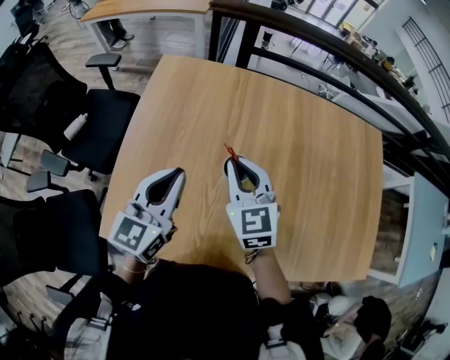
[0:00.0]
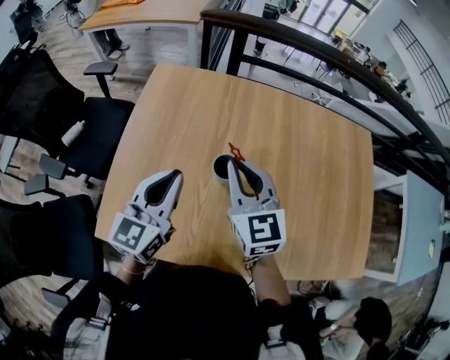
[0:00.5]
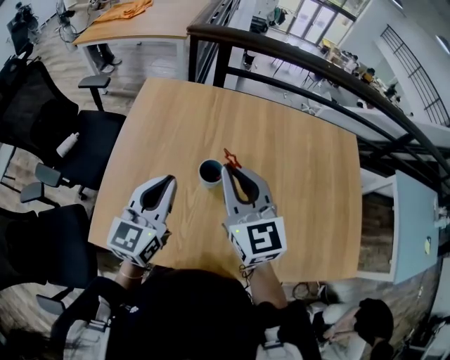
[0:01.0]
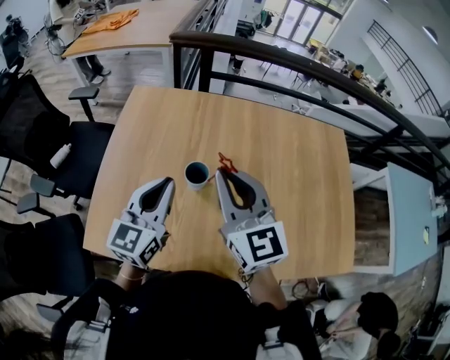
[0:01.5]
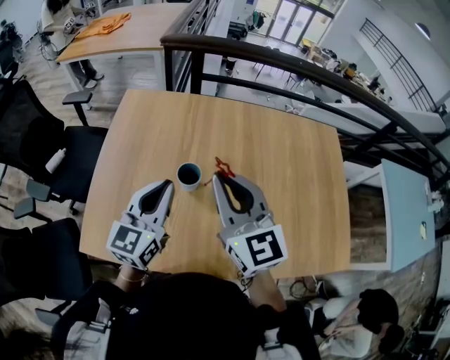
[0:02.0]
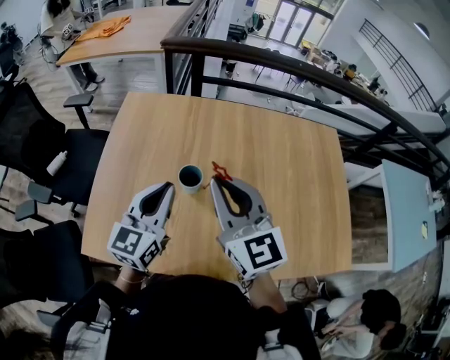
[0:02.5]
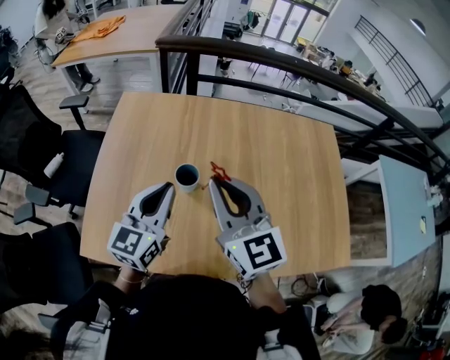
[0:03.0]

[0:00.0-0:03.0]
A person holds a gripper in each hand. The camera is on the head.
0:00.0 to 0:01.5: The left gripper shifts approximately 10 cm to the right. The right gripper goes approximately 20 cm upward, backward and to the right, and swivels roughly 20 degrees.
0:01.5 to 0:03.0: There are only small adjustments of the grippers.

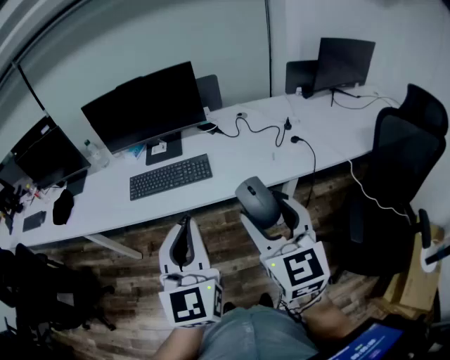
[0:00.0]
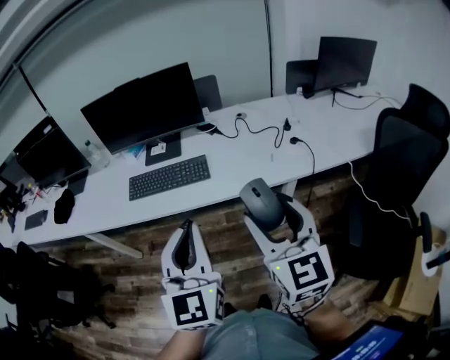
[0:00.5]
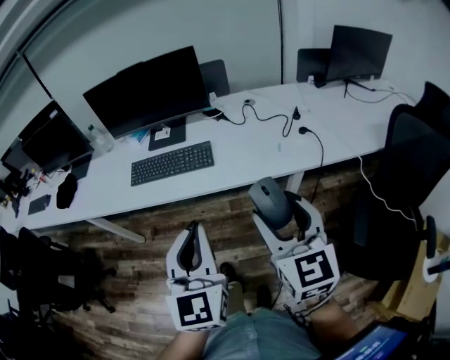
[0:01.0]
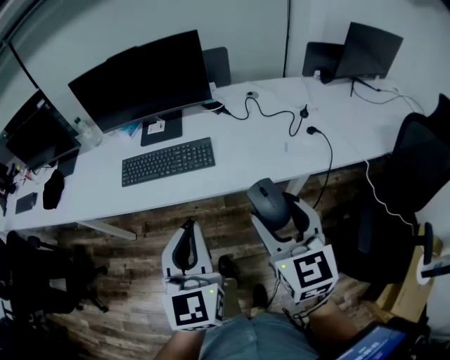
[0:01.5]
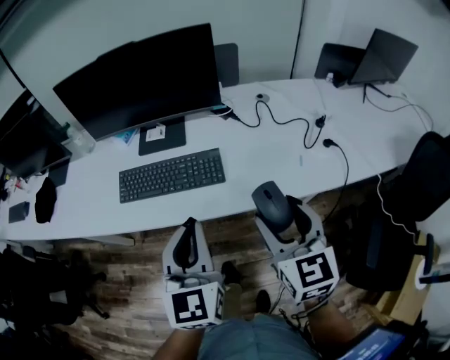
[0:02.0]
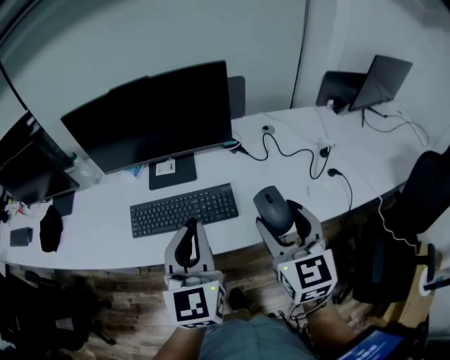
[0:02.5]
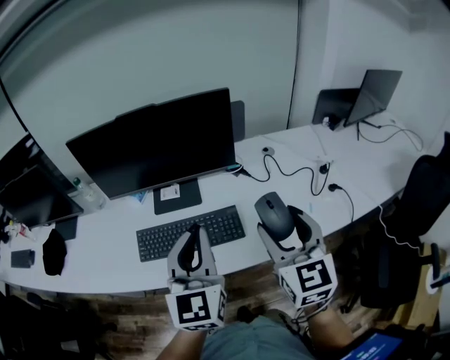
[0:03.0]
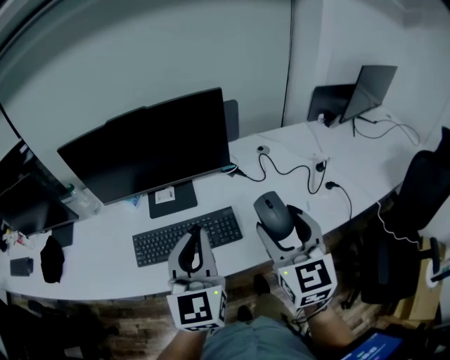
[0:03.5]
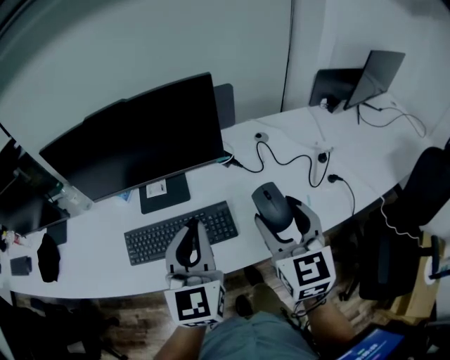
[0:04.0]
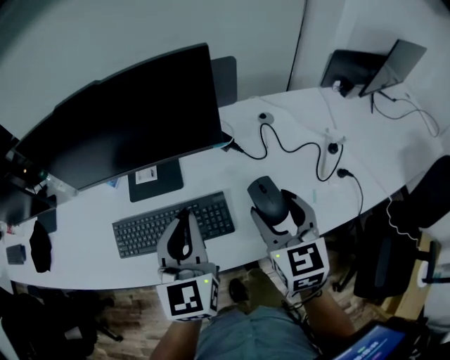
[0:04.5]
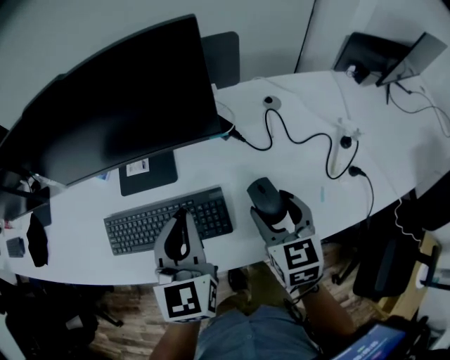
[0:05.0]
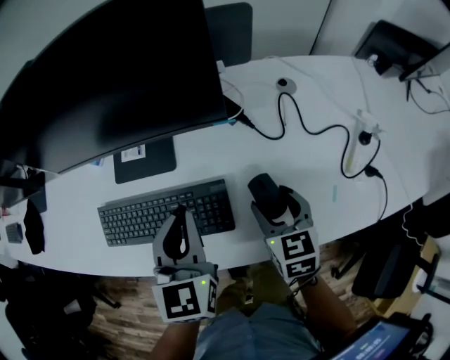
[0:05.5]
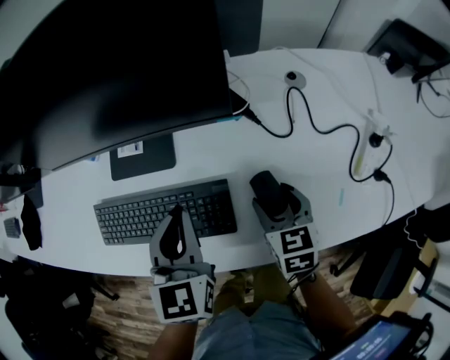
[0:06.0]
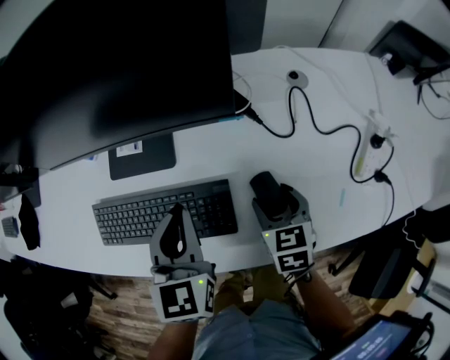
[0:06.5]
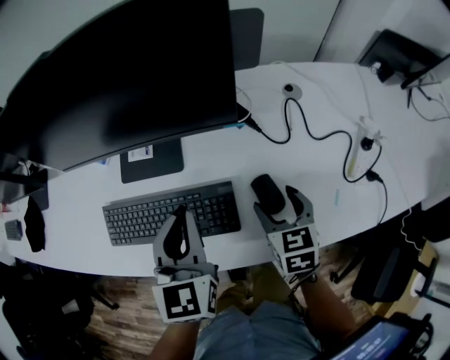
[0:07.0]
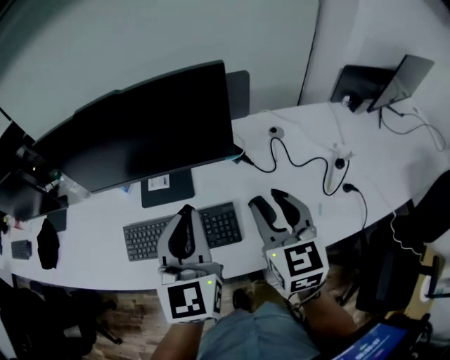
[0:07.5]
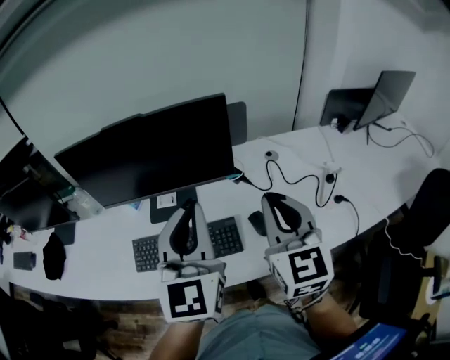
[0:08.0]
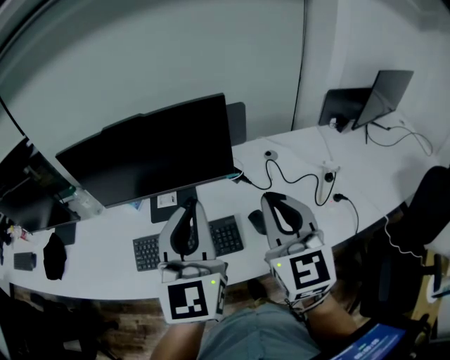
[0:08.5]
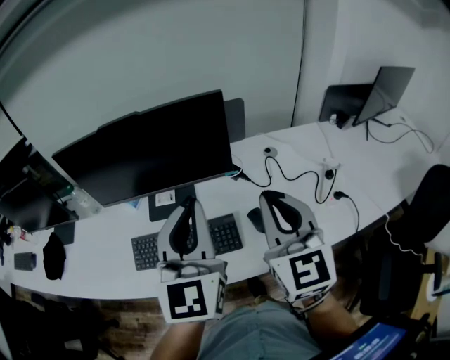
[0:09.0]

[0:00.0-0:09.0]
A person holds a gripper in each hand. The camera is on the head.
0:00.0 to 0:02.0: The grippers both shift forward and downward by some 20 cm.
0:02.0 to 0:04.5: Both grippers travel together forward, approximately 20 cm.
0:04.5 to 0:07.0: The right gripper travels downward by about 15 cm, and rotates approximately 20 degrees. The left gripper shifts about 5 cm downward.
0:07.0 to 0:09.0: Both grippers travel together upward, roughly 25 cm. The left gripper changes its angle by roughly 30 degrees. The right gripper points its fingers about 40 degrees further upward, and closes up.

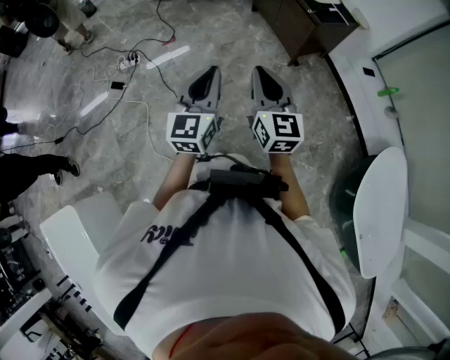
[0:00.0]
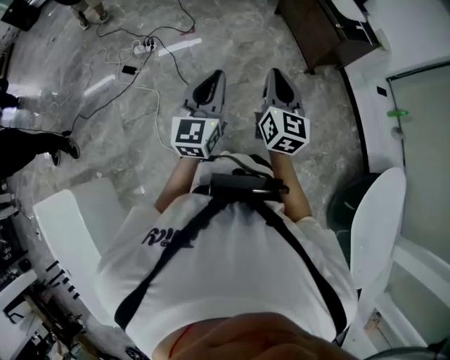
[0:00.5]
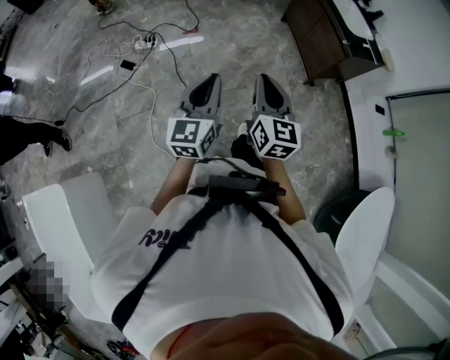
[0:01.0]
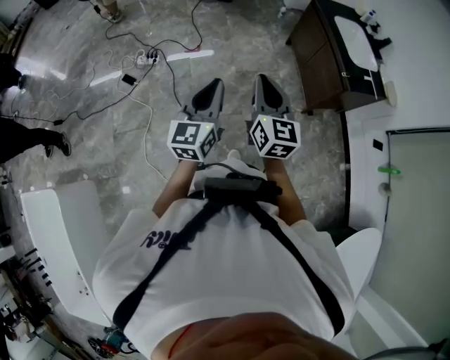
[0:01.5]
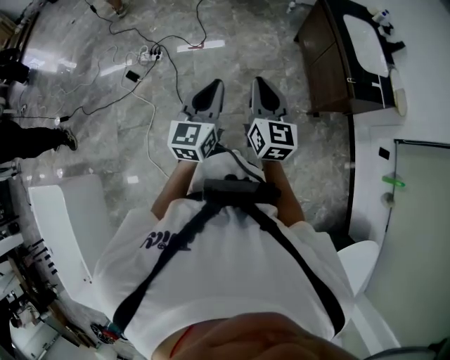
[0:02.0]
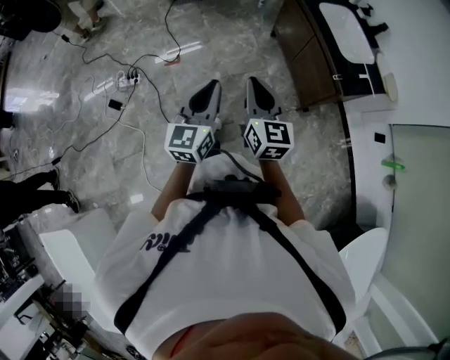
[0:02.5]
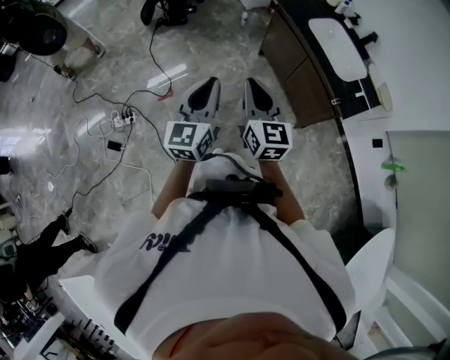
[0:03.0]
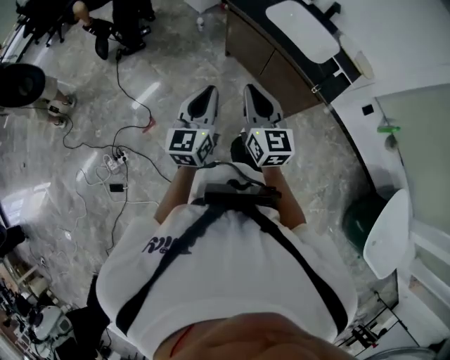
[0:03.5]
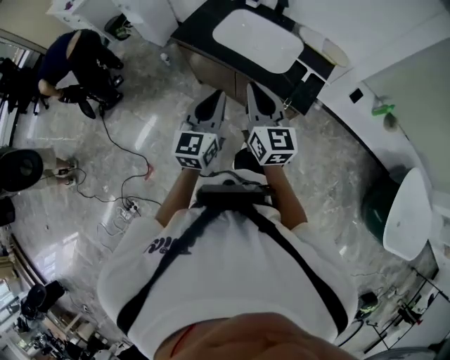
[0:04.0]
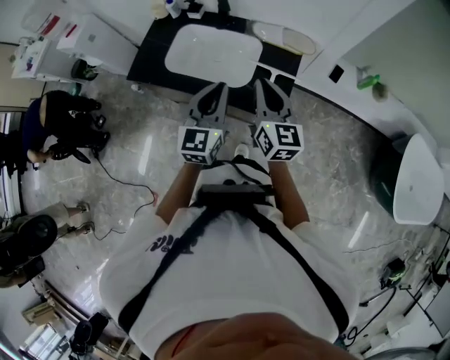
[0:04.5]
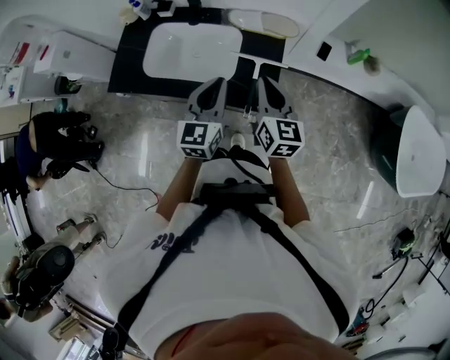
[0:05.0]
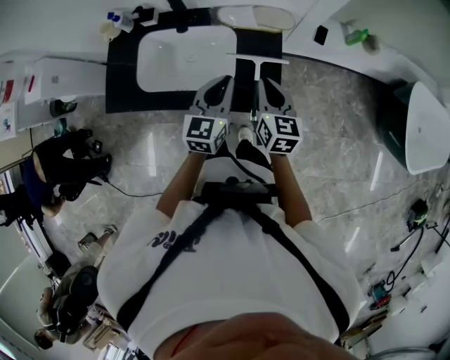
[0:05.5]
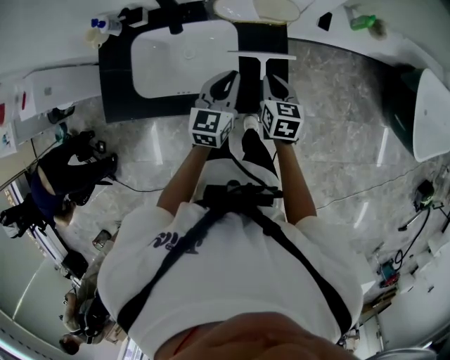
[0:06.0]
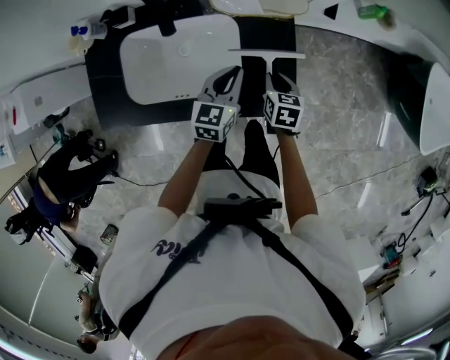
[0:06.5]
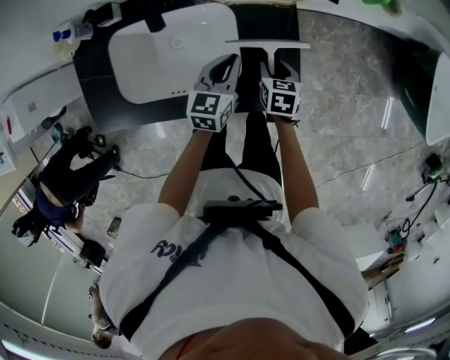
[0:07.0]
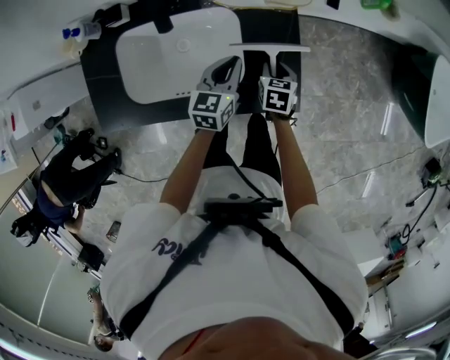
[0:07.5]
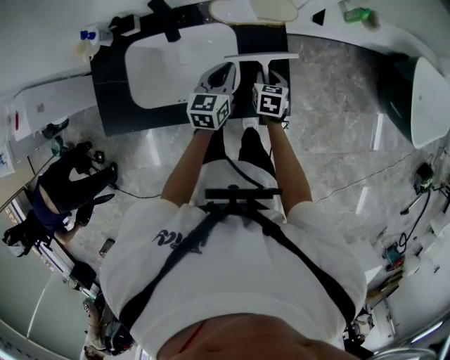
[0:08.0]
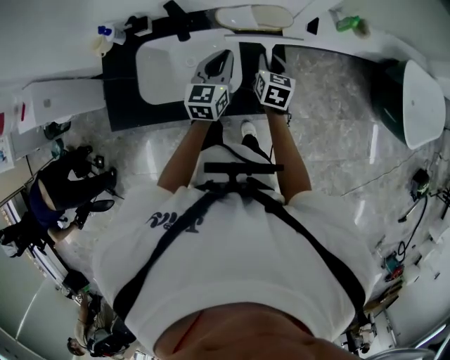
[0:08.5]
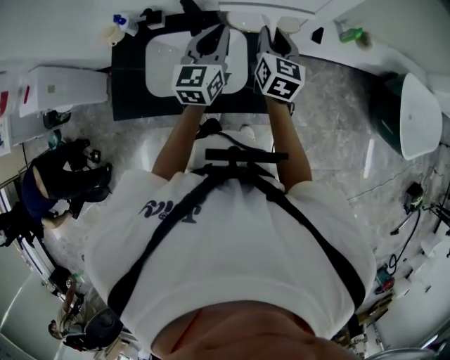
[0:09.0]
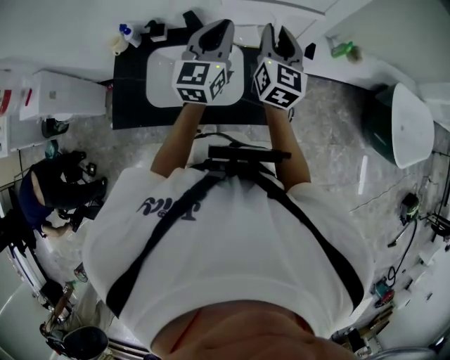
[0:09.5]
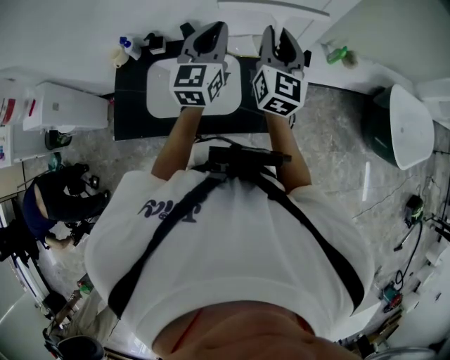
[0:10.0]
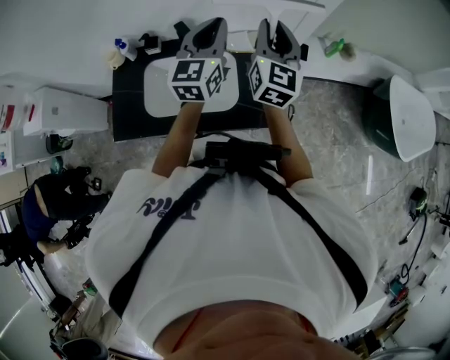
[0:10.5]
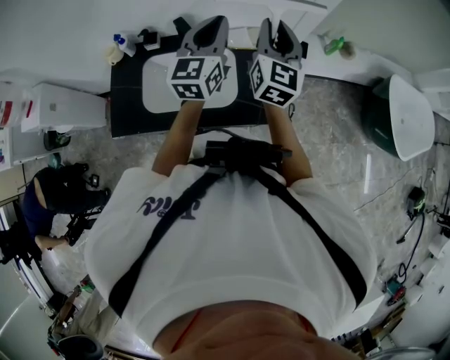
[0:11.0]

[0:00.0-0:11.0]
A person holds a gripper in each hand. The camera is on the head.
0:00.0 to 0:02.0: The two grippers go about 30 cm forward.
0:02.0 to 0:03.5: The right gripper changes place by roughly 35 cm, and changes its angle by some 30 degrees. Meanwhile the left gripper ends up some 40 cm from where it was, and swivels about 30 degrees.
0:03.5 to 0:05.5: The pair of grippers is taken about 60 cm. The right gripper turns by about 50 degrees; the left gripper changes its angle by some 50 degrees.
0:05.5 to 0:07.5: The left gripper shifts roughly 20 cm downward and forward. Meanwhile the right gripper is displaced downward by roughly 25 cm, tilts its fingers some 40 degrees downward, and opens its fingers.
0:07.5 to 0:09.0: The grippers both shift upward by about 30 cm. The left gripper changes its angle by about 30 degrees; the right gripper points its fingers approximately 40 degrees further upward.
0:09.0 to 0:11.0: The grippers both shift upward by roughly 10 cm. The right gripper changes its angle by approximately 20 degrees.

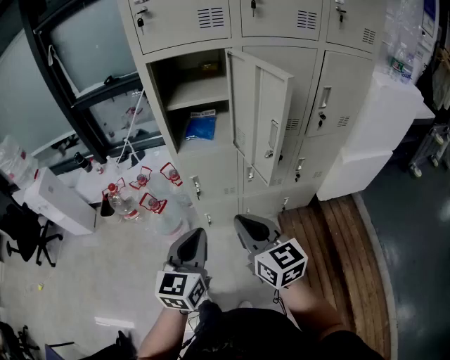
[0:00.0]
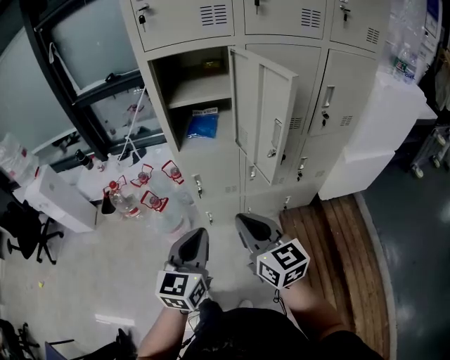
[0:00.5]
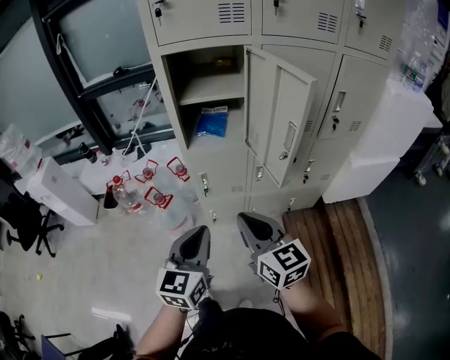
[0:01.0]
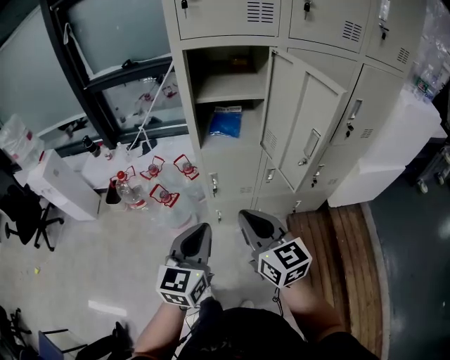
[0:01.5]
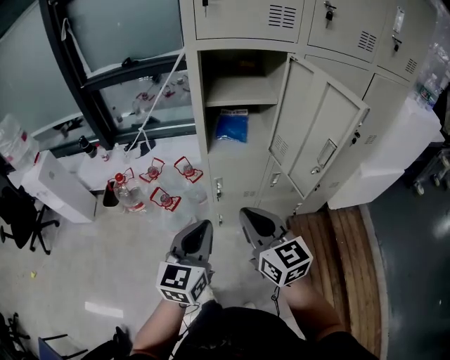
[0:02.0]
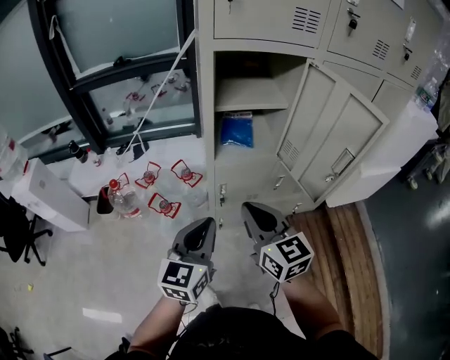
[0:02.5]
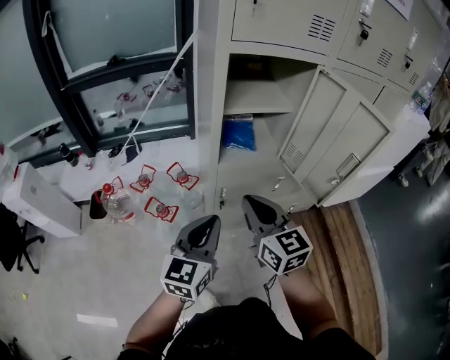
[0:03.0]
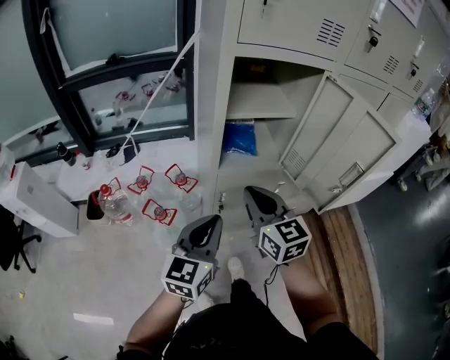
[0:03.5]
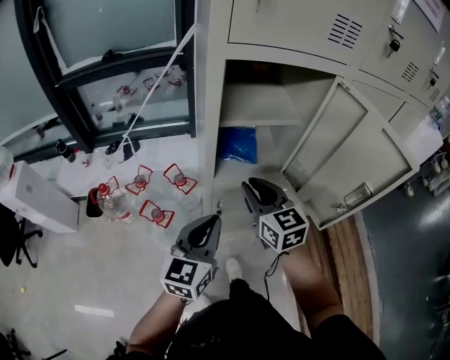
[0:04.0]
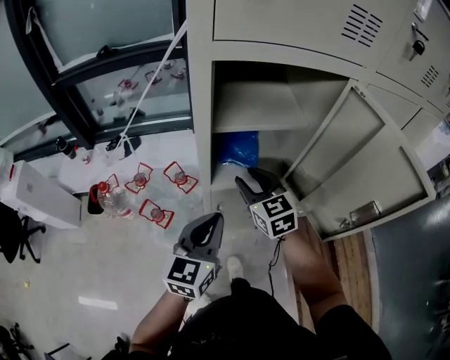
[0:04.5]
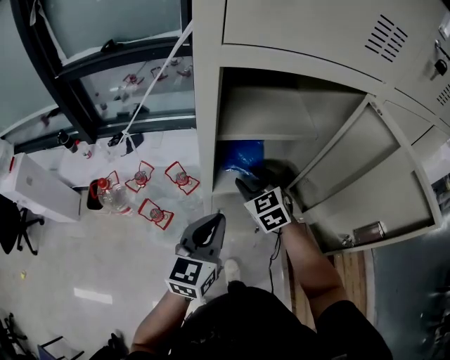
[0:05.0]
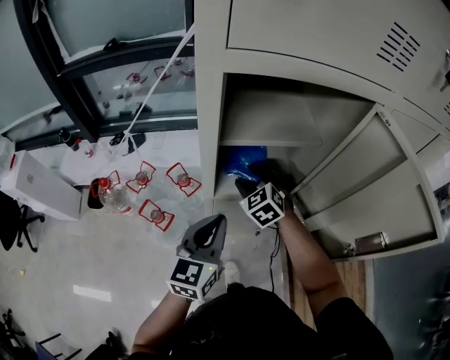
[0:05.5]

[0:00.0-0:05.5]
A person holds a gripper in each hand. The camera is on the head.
0:00.0 to 0:02.0: Both grippers travel together to the left and forward, about 15 cm.
0:02.0 to 0:03.5: The grippers both shift forward and to the left by about 15 cm.
0:03.5 to 0:05.5: The left gripper goes about 15 cm forward. Meanwhile the right gripper is displaced forward and downward by roughly 30 cm, turns by approximately 40 degrees, and opens up.
